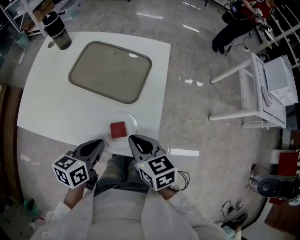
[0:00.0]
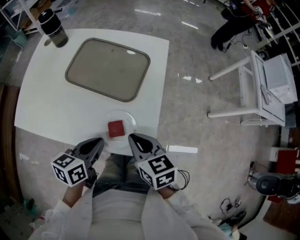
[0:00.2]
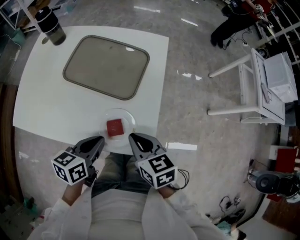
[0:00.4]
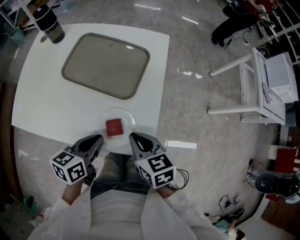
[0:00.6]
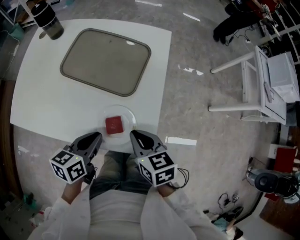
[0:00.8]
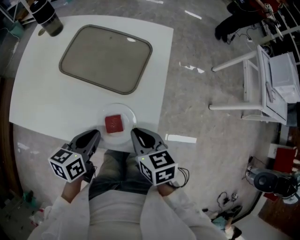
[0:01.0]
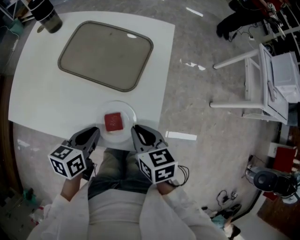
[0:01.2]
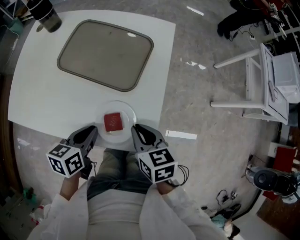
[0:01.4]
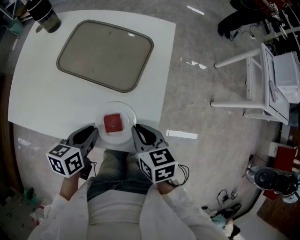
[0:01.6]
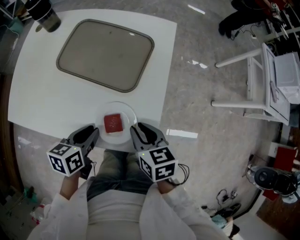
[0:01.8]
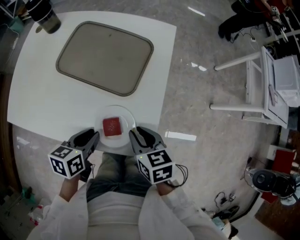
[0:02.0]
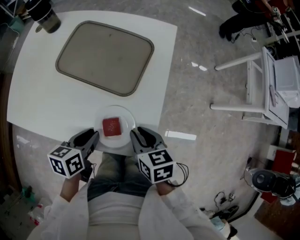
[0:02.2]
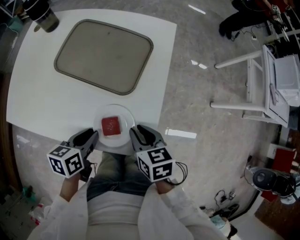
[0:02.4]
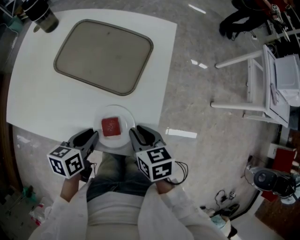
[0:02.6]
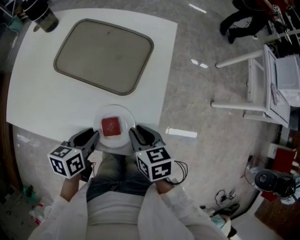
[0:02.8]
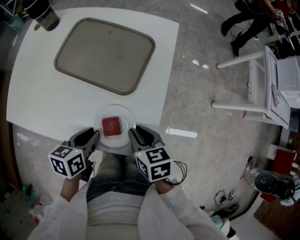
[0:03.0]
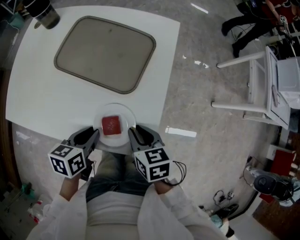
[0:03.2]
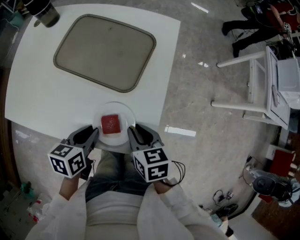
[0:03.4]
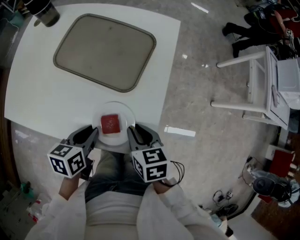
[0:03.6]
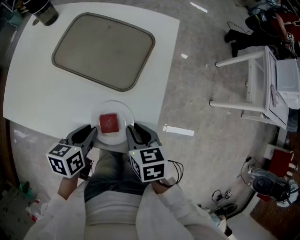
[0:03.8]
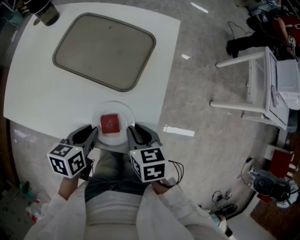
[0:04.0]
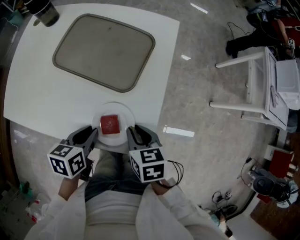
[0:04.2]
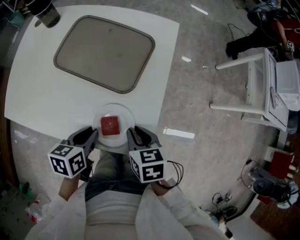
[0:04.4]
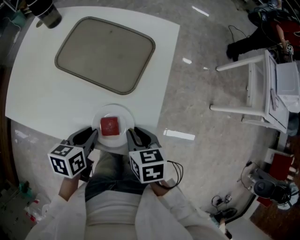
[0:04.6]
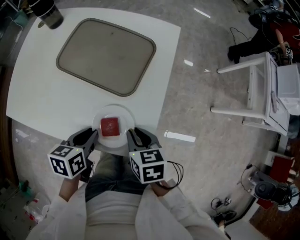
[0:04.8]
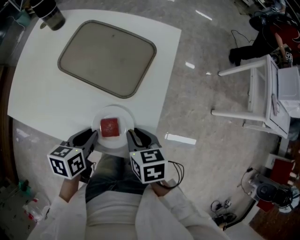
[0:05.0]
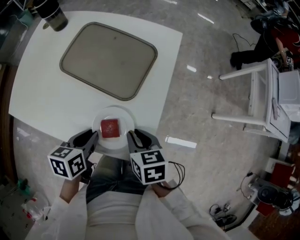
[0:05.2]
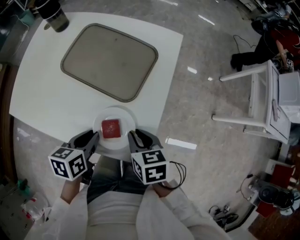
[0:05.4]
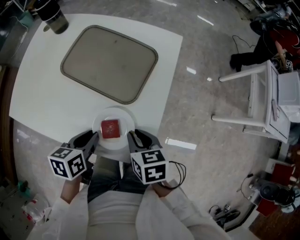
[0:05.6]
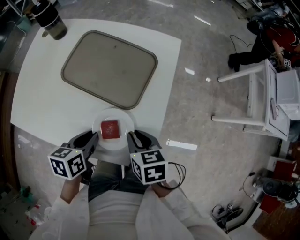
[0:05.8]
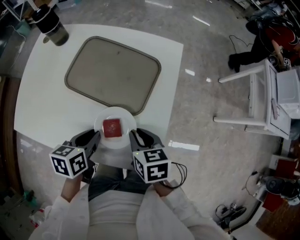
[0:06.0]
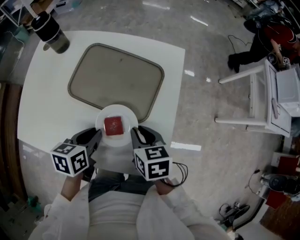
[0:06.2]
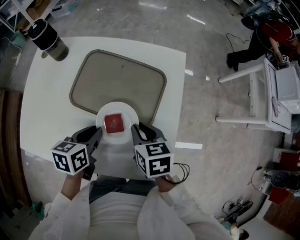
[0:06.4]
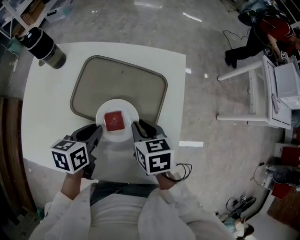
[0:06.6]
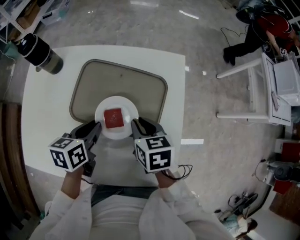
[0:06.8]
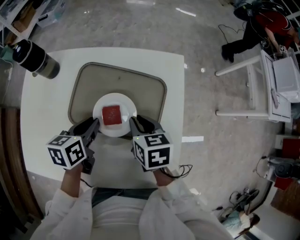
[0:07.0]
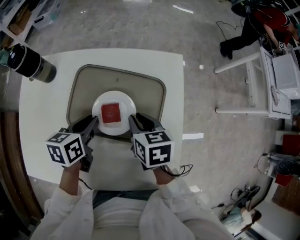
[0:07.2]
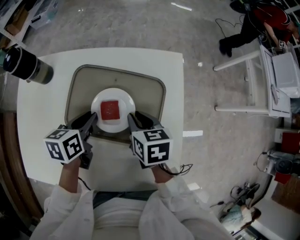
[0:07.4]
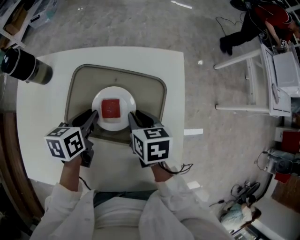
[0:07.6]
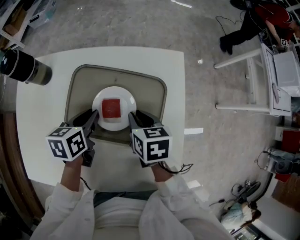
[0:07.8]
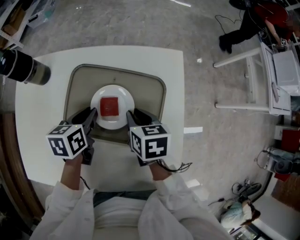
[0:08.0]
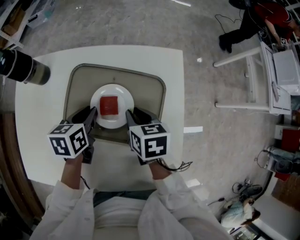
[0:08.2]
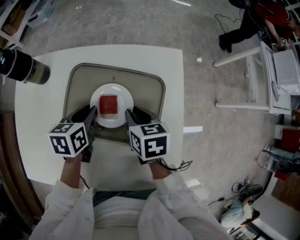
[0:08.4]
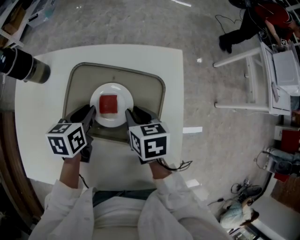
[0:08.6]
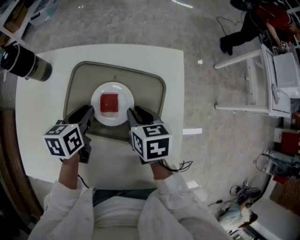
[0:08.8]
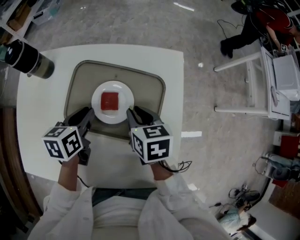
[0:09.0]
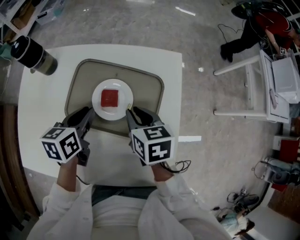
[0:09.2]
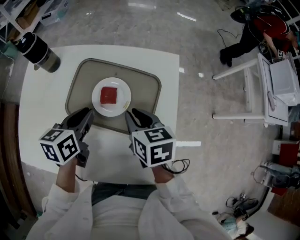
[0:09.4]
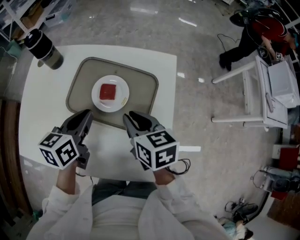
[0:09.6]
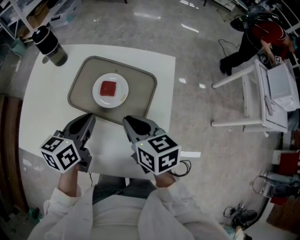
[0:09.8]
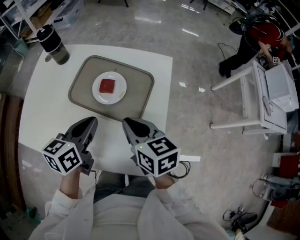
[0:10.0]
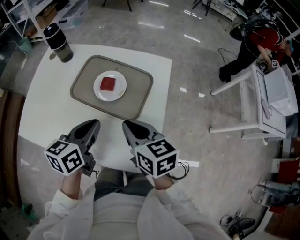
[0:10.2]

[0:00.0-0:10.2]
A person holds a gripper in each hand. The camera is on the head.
0:00.0 to 0:01.4: The two grippers go roughly 5 cm downward.
0:01.4 to 0:05.8: There are only small adjustments of the grippers.
0:05.8 to 0:07.2: The right gripper moves forward and to the left, approximately 20 cm, while the left gripper shifts some 25 cm forward.
0:07.2 to 0:08.8: The grippers stay close to where they were, moving slightly.
0:08.8 to 0:10.2: The right gripper is displaced backward and upward by about 20 cm, and rotates about 30 degrees. Meanwhile the left gripper goes roughly 25 cm backward, upward and to the right, and swivels some 20 degrees.

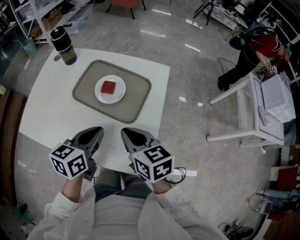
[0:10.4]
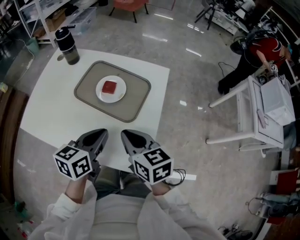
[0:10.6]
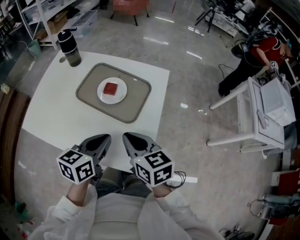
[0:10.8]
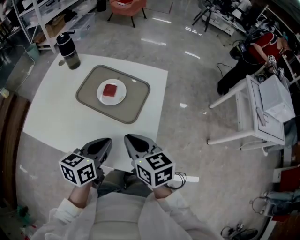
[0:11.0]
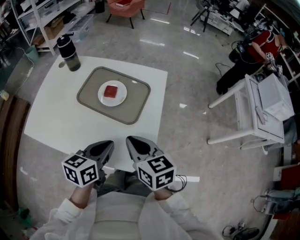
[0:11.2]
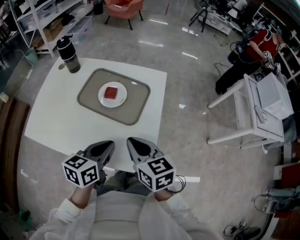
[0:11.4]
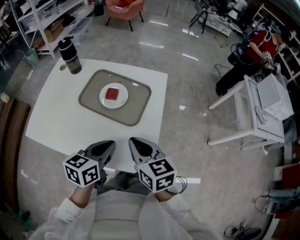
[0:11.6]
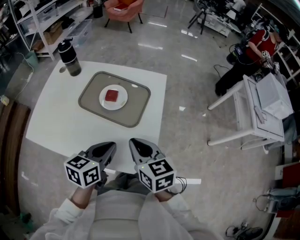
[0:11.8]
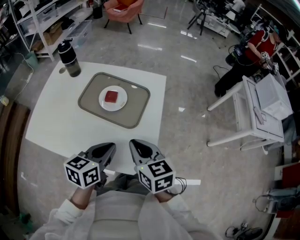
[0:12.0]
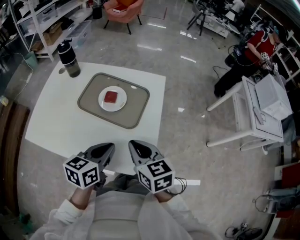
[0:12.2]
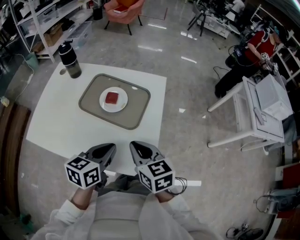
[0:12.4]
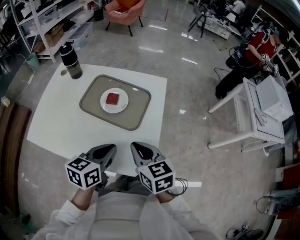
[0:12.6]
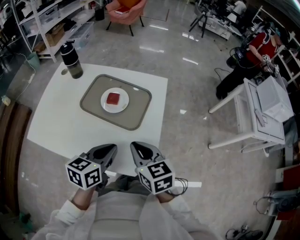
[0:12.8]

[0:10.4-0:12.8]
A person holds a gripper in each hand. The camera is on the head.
0:10.4 to 0:11.6: The right gripper shifts by some 5 cm. Meanwhile the left gripper moves backward, about 5 cm.
0:11.6 to 0:12.8: The grippers stay close to where they were, moving slightly.

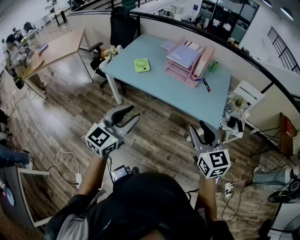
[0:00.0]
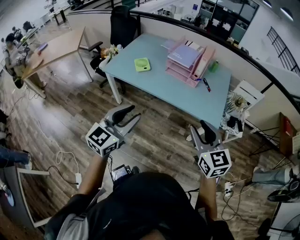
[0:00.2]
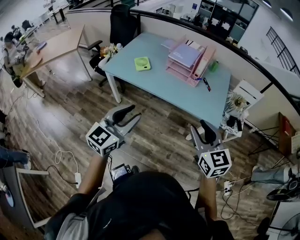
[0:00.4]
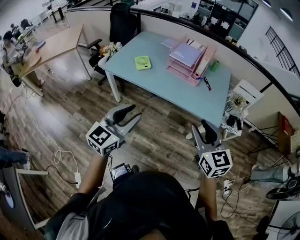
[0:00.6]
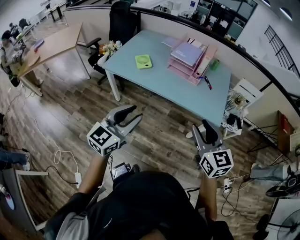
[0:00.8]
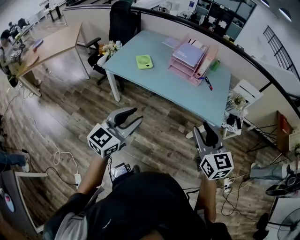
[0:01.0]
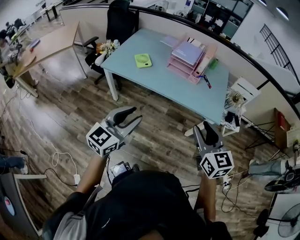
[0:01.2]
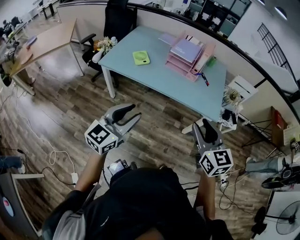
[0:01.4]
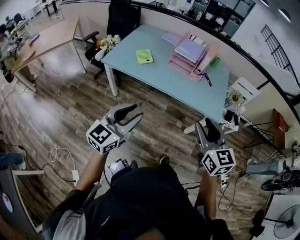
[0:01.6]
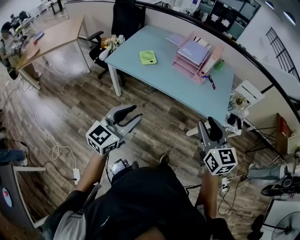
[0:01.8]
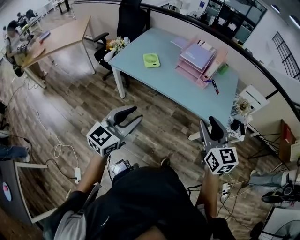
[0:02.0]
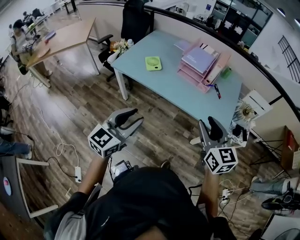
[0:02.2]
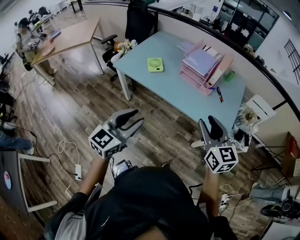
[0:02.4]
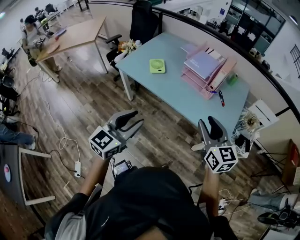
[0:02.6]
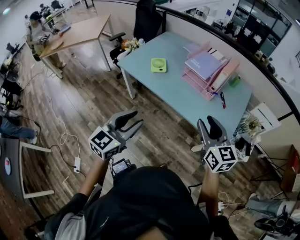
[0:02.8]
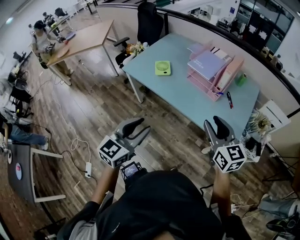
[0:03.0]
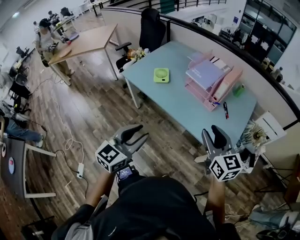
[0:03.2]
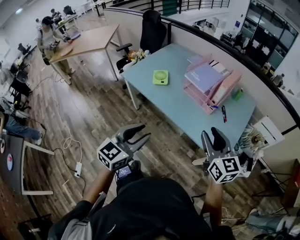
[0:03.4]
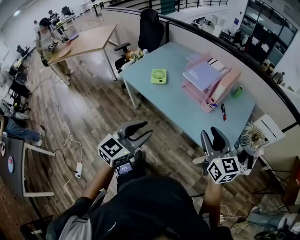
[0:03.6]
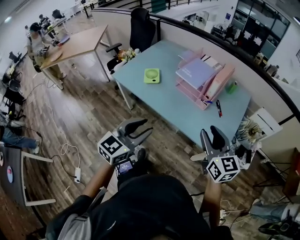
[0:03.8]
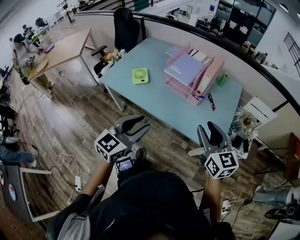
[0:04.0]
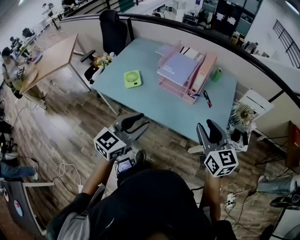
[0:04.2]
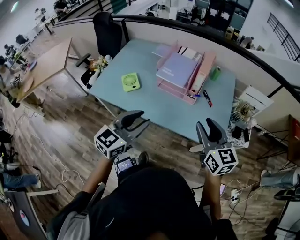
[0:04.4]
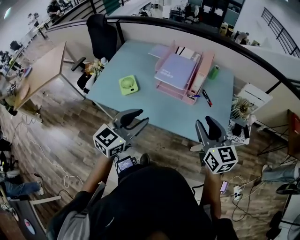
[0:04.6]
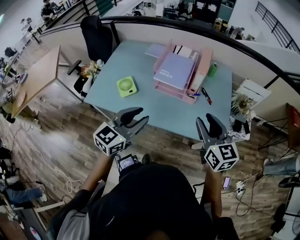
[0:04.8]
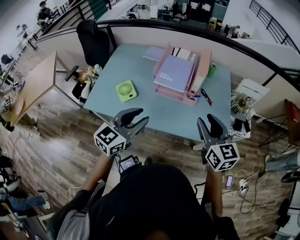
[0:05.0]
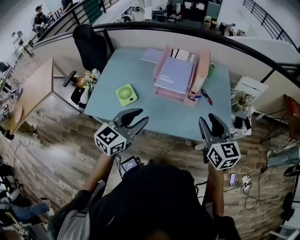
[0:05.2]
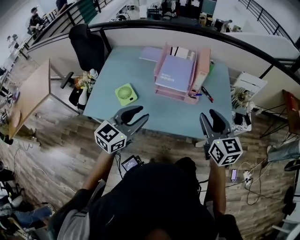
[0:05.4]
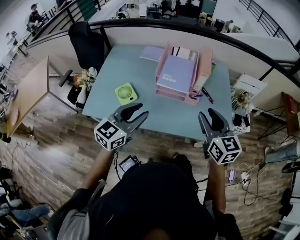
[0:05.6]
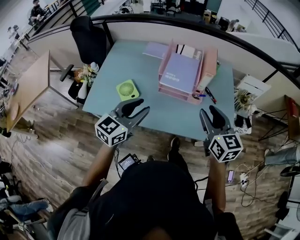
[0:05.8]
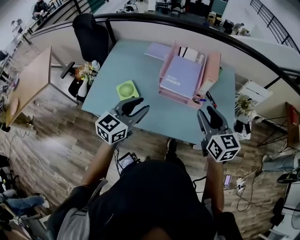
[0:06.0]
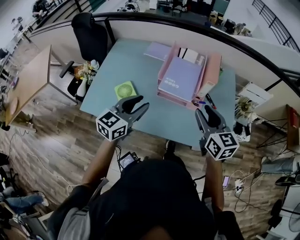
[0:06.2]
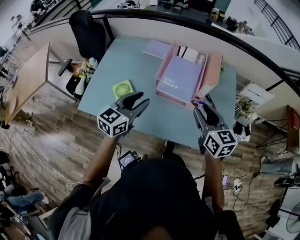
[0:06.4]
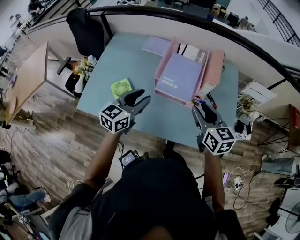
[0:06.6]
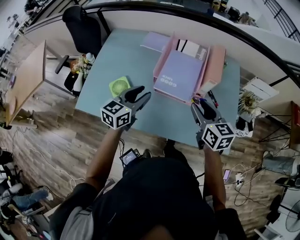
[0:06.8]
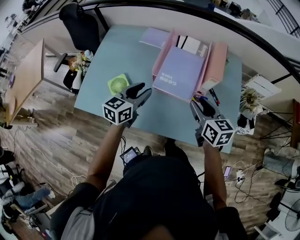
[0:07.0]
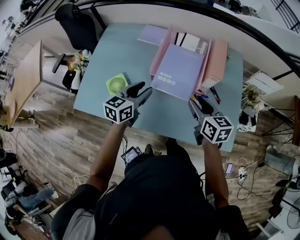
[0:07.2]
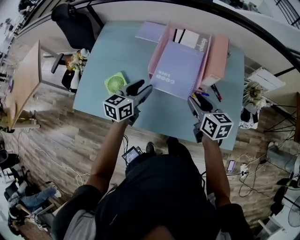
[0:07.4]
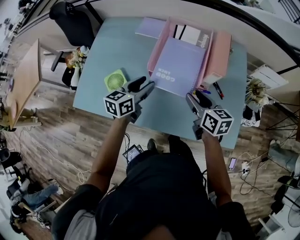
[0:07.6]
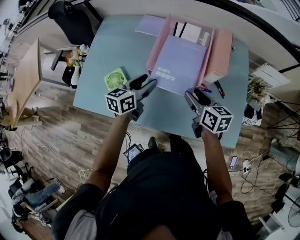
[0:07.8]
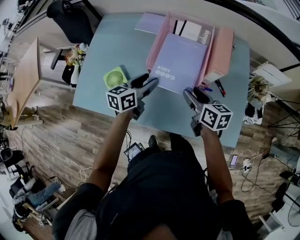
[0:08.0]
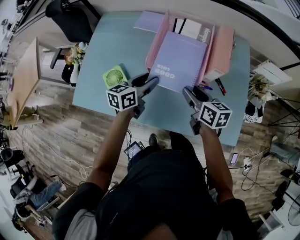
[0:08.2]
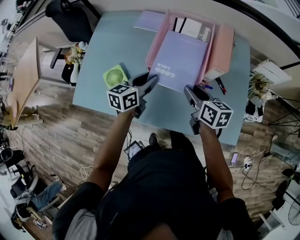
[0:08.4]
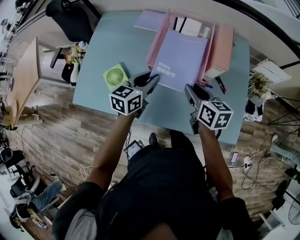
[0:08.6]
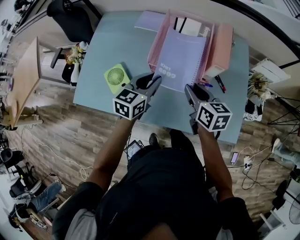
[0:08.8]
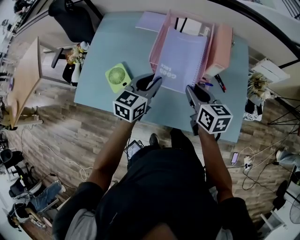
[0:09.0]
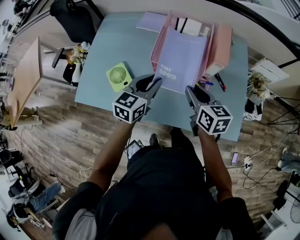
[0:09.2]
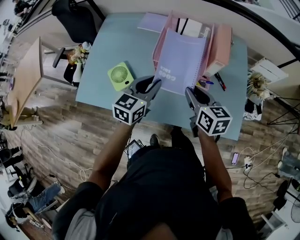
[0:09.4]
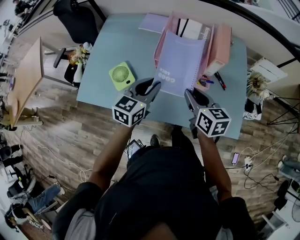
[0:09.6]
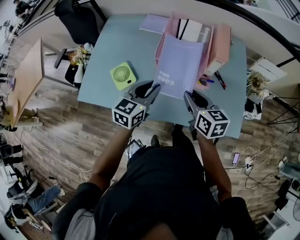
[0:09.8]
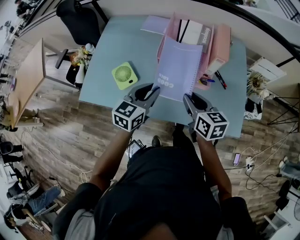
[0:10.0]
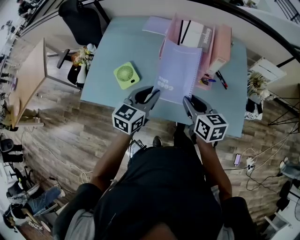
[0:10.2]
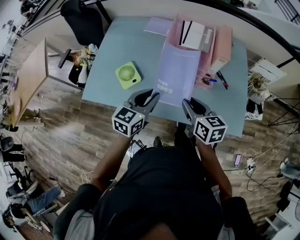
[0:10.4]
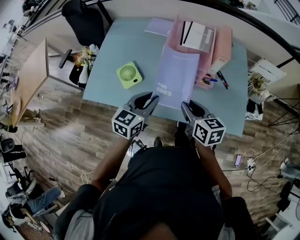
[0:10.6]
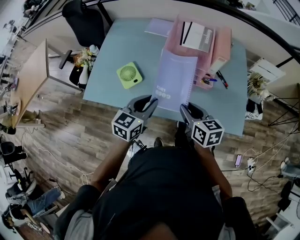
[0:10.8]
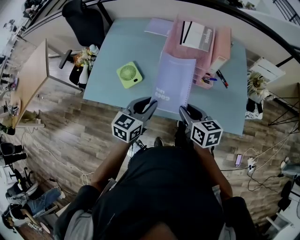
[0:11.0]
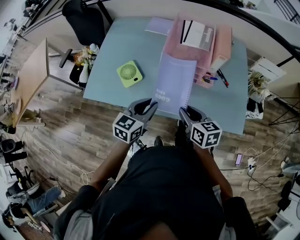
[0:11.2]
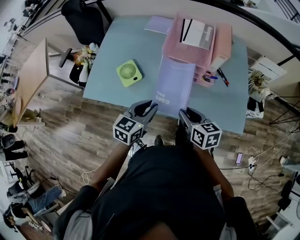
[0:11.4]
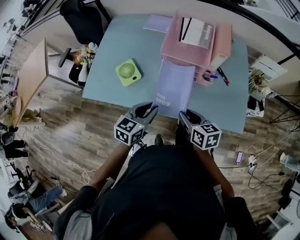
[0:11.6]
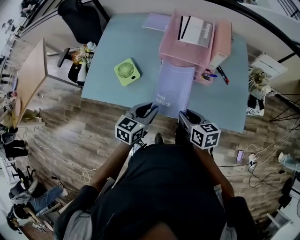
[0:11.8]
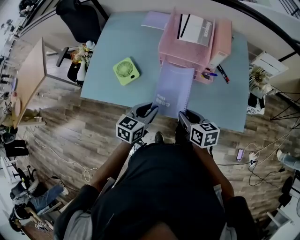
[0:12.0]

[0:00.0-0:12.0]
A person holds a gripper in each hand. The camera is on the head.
0:00.0 to 0:01.6: Both grippers move to the left, roughly 5 cm.
0:01.6 to 0:03.0: The right gripper goes some 20 cm forward and to the right, while the left gripper moves to the right and forward, some 15 cm.
0:03.0 to 0:04.4: The left gripper moves forward, about 20 cm, and changes its angle by roughly 20 degrees; the right gripper goes roughly 10 cm forward.
0:04.4 to 0:06.0: The grippers both shift forward and to the left by roughly 15 cm.
0:06.0 to 0:07.6: The right gripper shifts roughly 20 cm downward and forward, and turns by roughly 30 degrees; the left gripper goes roughly 25 cm forward and downward, and turns by about 30 degrees.
0:07.6 to 0:09.0: The right gripper closes up.
0:09.0 to 0:10.4: Both grippers travel together backward, some 10 cm.
0:10.4 to 0:12.0: The two grippers go about 10 cm downward and backward.
